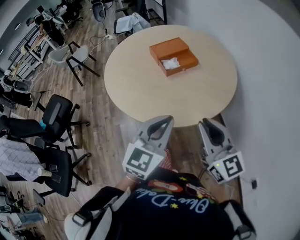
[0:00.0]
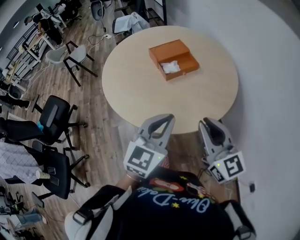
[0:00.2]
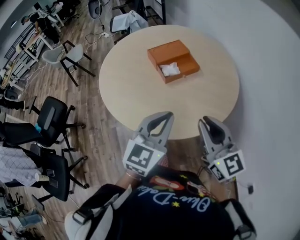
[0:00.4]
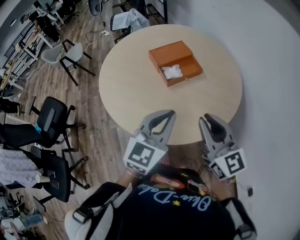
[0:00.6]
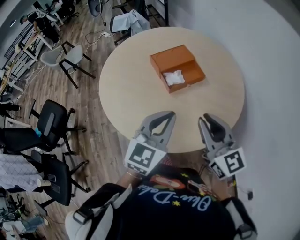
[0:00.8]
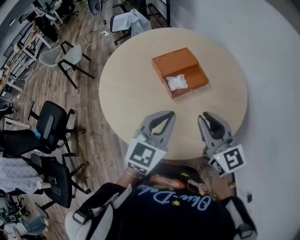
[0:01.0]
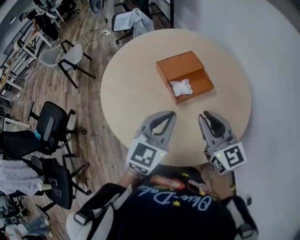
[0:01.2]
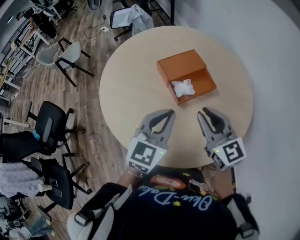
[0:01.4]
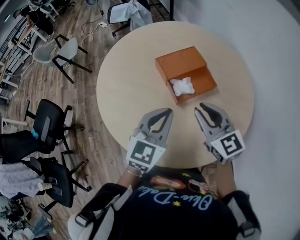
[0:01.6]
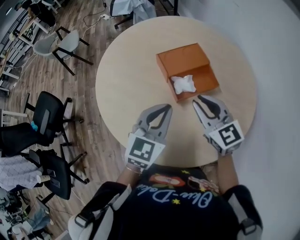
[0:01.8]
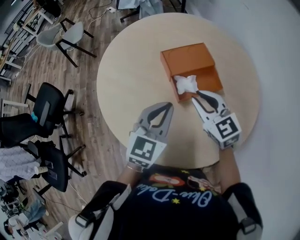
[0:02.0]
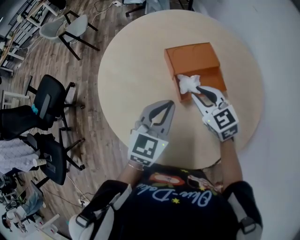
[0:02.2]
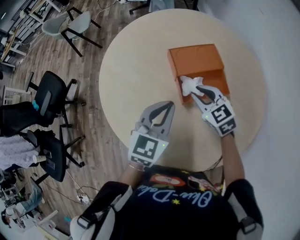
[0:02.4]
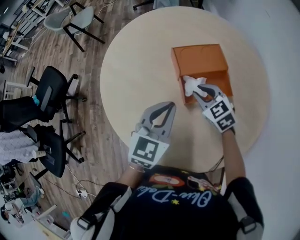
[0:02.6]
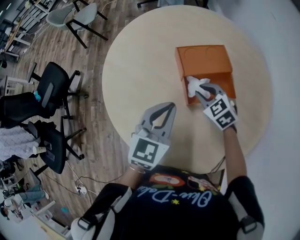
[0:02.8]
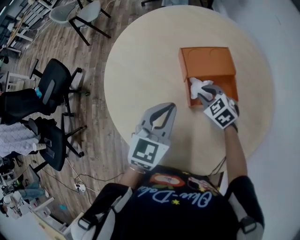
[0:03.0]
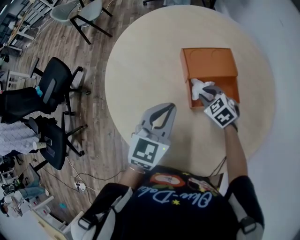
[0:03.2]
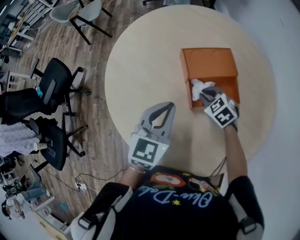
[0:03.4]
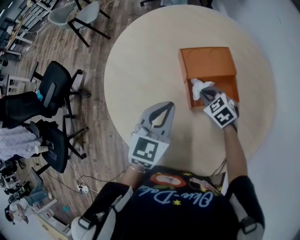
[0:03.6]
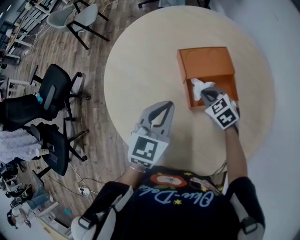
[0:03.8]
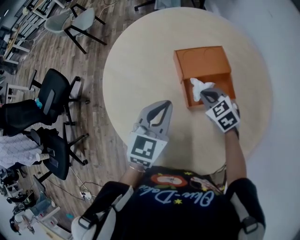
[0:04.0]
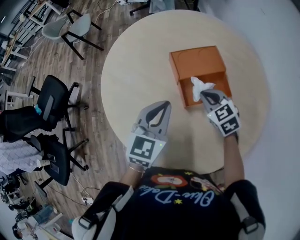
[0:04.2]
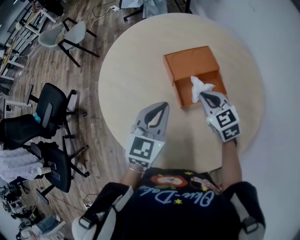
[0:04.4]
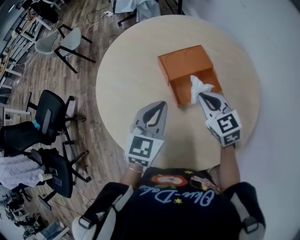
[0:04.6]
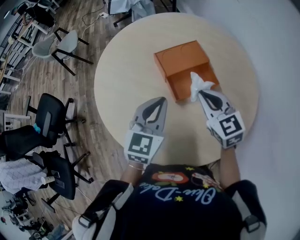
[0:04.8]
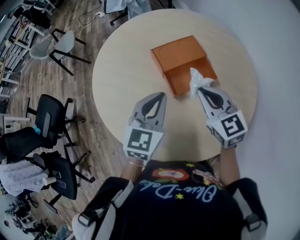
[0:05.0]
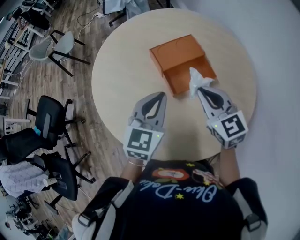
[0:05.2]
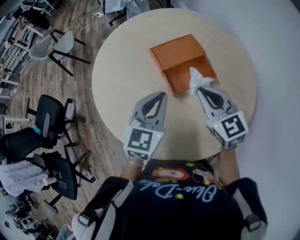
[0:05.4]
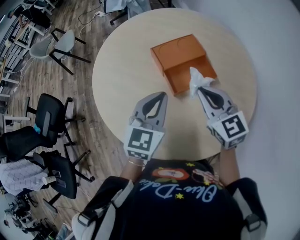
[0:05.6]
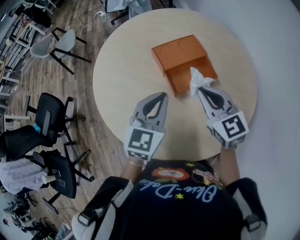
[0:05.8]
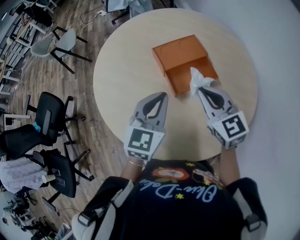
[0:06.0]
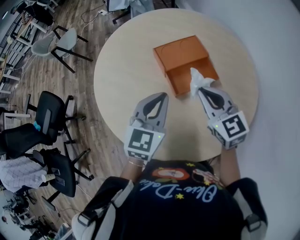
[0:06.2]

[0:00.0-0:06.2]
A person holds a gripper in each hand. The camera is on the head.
0:00.0 to 0:01.6: The two grippers go some 25 cm forward.
0:01.6 to 0:03.2: The right gripper moves downward and forward, approximately 25 cm, and angles its fingers downward, by about 40 degrees; the left gripper is displaced forward by roughly 5 cm.
0:03.2 to 0:04.6: The right gripper moves upward, some 15 cm, and swivels about 40 degrees.
0:04.6 to 0:06.2: The right gripper moves upward, roughly 5 cm.

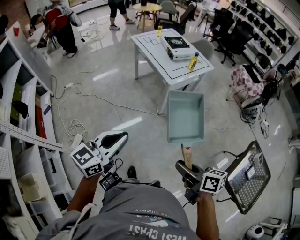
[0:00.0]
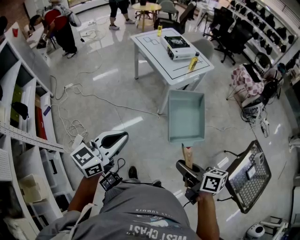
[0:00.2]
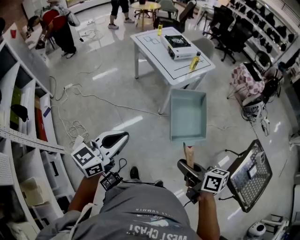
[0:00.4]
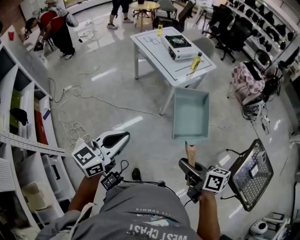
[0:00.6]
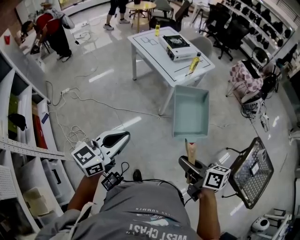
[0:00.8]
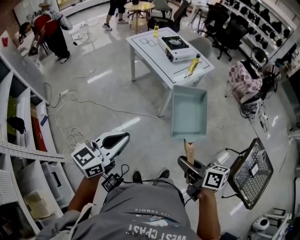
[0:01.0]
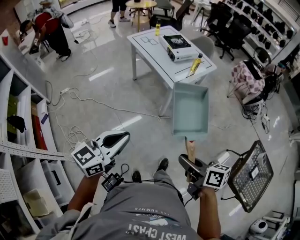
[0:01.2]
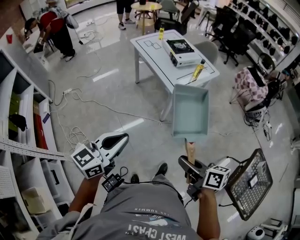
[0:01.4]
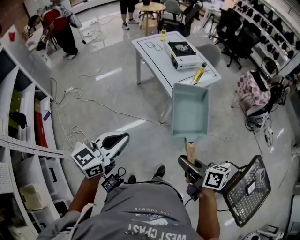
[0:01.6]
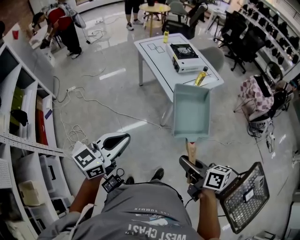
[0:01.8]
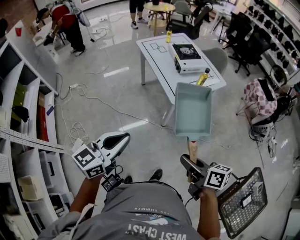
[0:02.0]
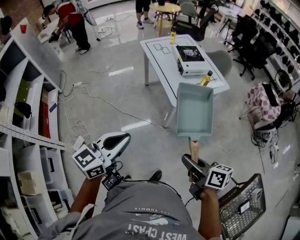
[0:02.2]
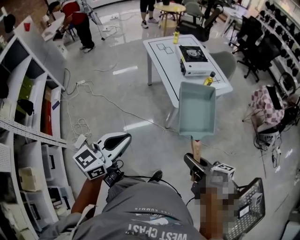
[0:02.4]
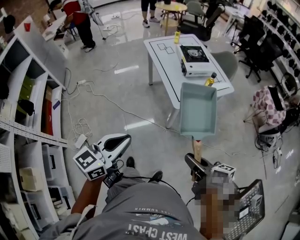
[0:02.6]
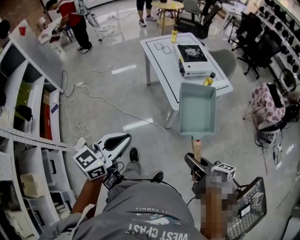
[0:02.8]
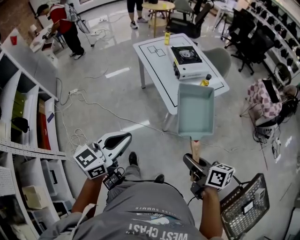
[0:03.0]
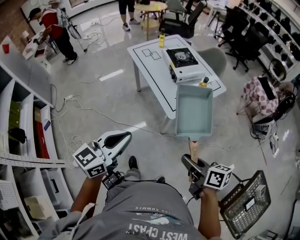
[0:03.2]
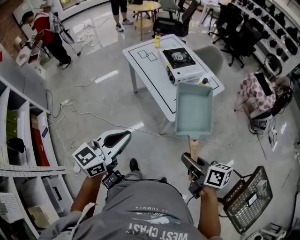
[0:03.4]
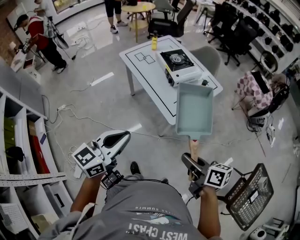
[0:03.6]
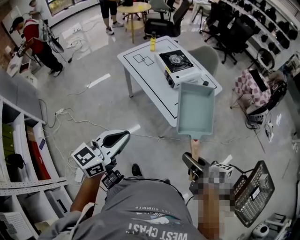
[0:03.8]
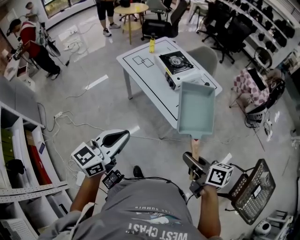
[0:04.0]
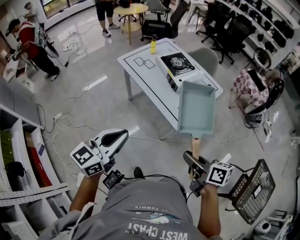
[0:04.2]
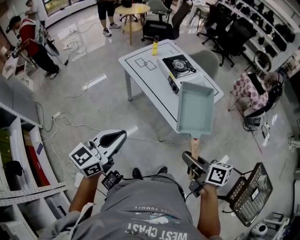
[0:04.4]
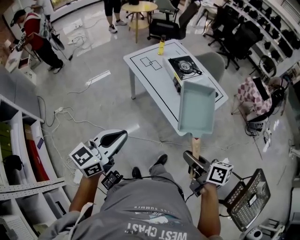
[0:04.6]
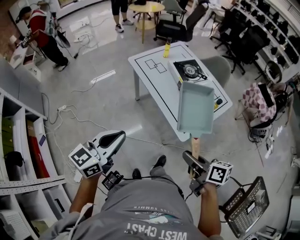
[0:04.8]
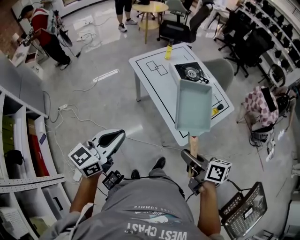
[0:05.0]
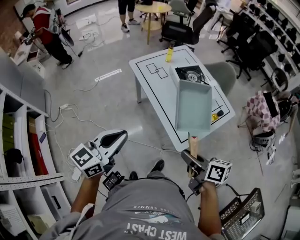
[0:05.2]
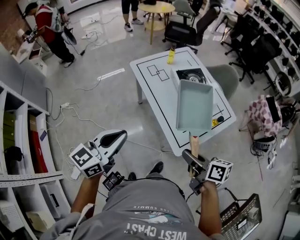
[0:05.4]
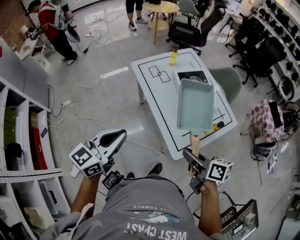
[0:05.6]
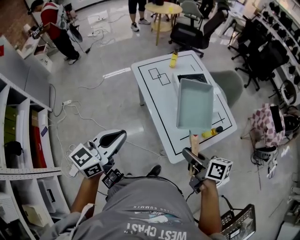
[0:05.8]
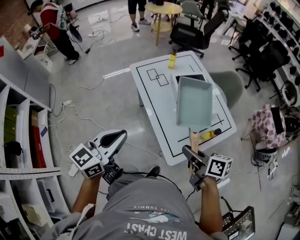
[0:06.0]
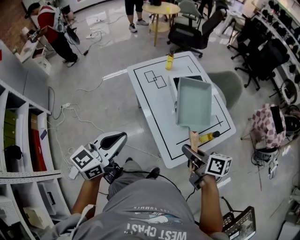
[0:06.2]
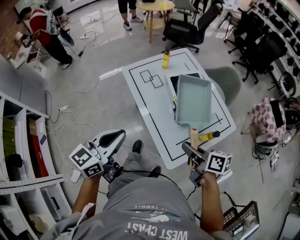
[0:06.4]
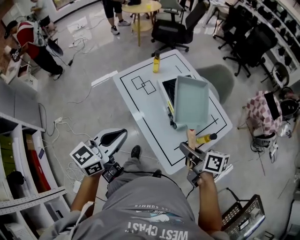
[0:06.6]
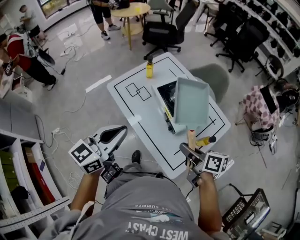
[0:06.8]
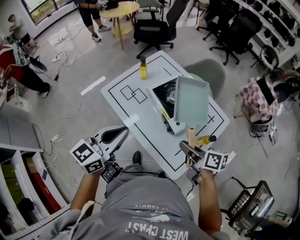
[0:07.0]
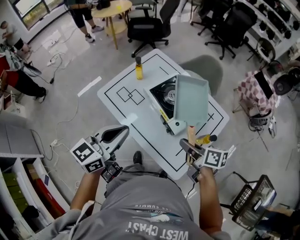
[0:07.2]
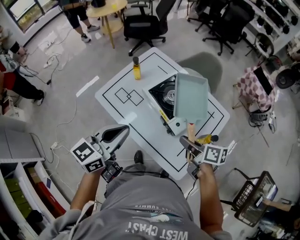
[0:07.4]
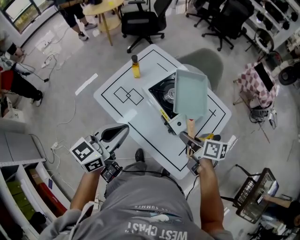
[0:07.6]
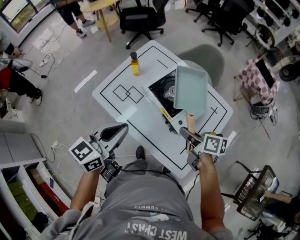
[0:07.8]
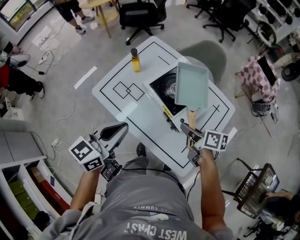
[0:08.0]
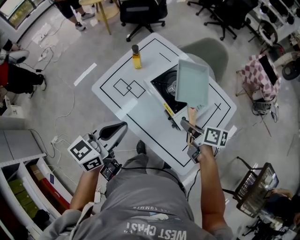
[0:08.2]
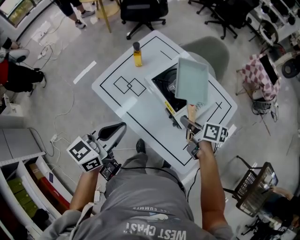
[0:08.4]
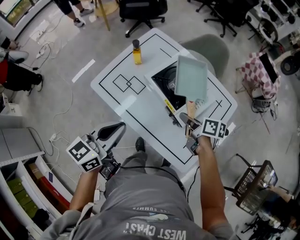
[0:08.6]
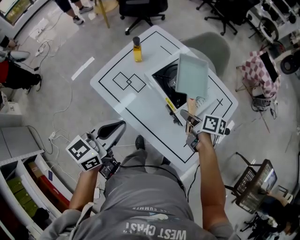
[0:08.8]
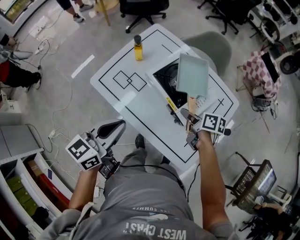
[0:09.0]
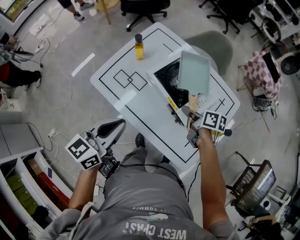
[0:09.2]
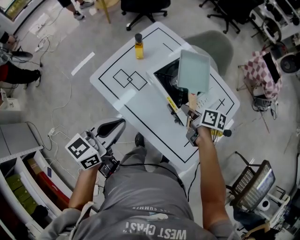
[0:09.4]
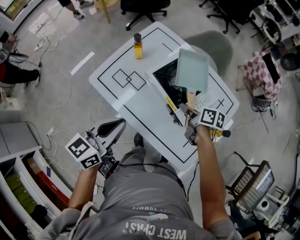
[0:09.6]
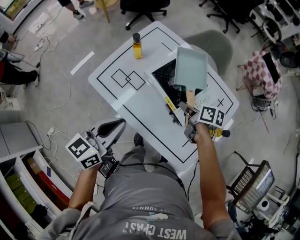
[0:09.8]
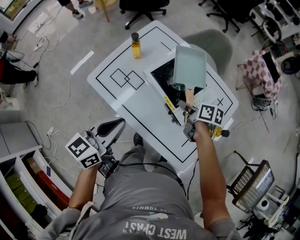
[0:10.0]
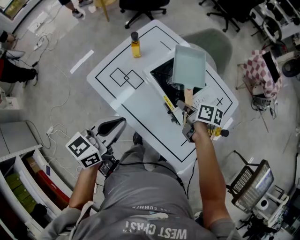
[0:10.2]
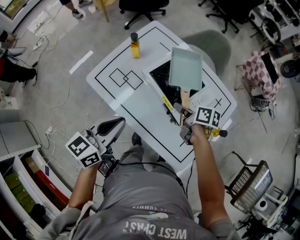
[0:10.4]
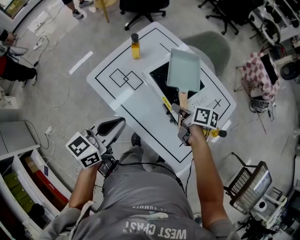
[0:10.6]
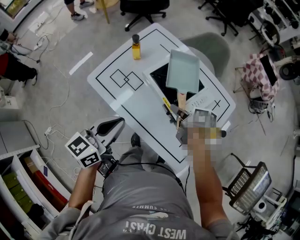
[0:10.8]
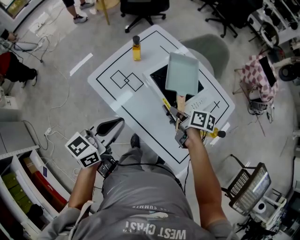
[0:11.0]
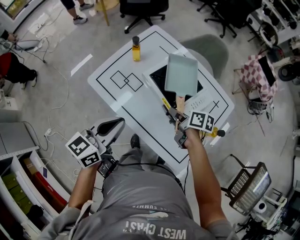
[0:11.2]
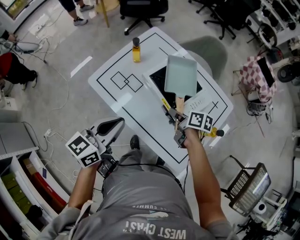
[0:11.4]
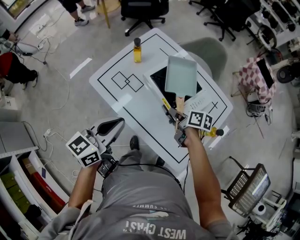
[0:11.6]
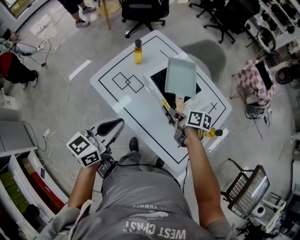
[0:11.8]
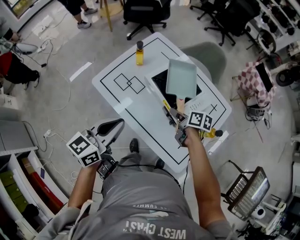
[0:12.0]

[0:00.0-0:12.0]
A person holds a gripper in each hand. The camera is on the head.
0:00.0 to 0:01.6: Both grippers travel together forward, some 15 cm.
0:01.6 to 0:03.0: The two grippers go roughly 15 cm forward and to the right.
0:03.0 to 0:04.4: The left gripper is displaced forward and to the left by roughly 25 cm. The right gripper shifts approximately 20 cm to the left and forward.
0:04.4 to 0:06.0: The right gripper goes some 25 cm forward. The left gripper goes approximately 20 cm forward and to the right.
0:06.0 to 0:07.6: The right gripper changes place by about 20 cm, and turns by roughly 30 degrees; the left gripper shifts by approximately 25 cm, and swivels roughly 30 degrees.
0:07.6 to 0:09.0: The right gripper moves downward and forward, about 10 cm. The left gripper goes approximately 5 cm downward.
0:09.0 to 0:10.4: There are only small adjustments of the grippers.
0:10.4 to 0:12.0: The right gripper opens up.

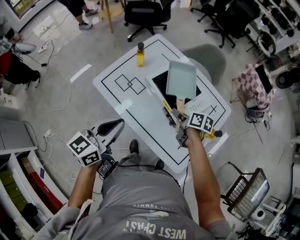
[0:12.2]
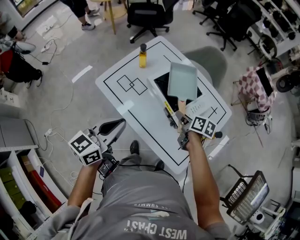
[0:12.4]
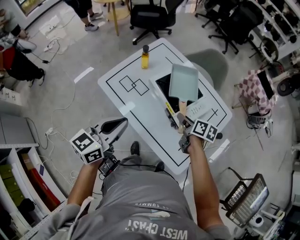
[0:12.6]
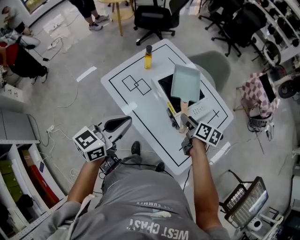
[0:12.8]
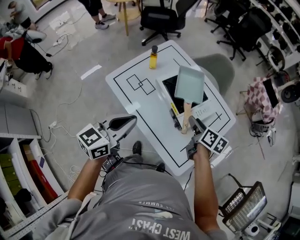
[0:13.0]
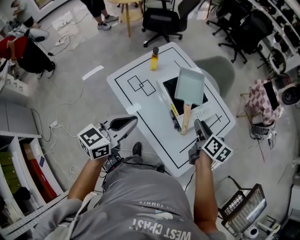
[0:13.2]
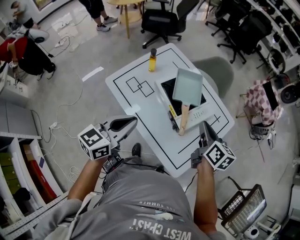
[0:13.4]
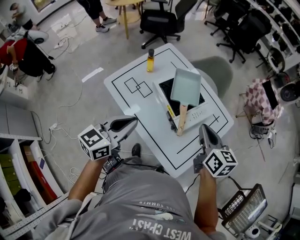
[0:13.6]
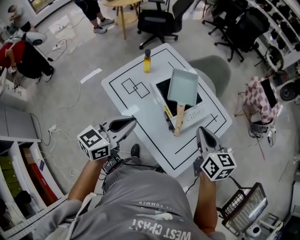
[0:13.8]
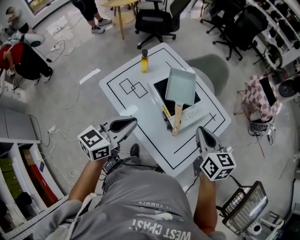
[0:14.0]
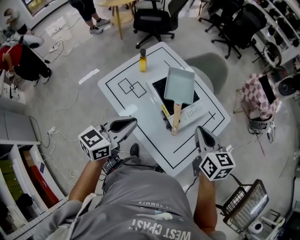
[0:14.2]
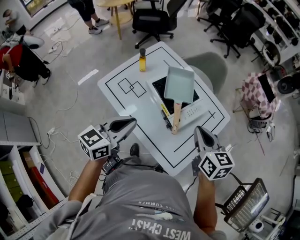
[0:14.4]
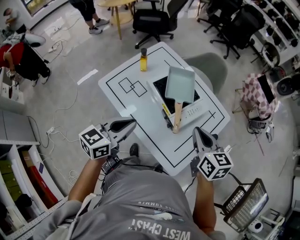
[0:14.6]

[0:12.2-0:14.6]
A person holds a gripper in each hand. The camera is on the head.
0:12.2 to 0:13.4: The right gripper travels upward and to the right by approximately 15 cm, turns by approximately 30 degrees, and closes.
0:13.4 to 0:14.6: The right gripper moves approximately 5 cm.

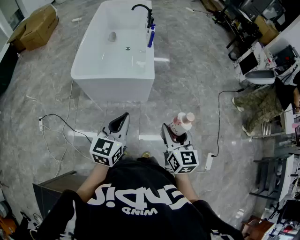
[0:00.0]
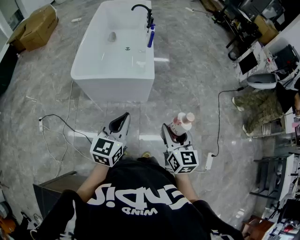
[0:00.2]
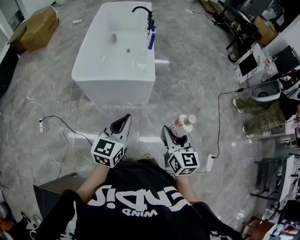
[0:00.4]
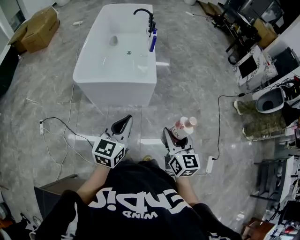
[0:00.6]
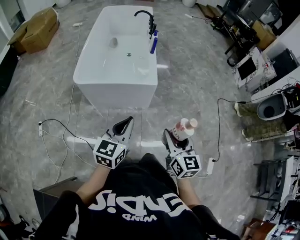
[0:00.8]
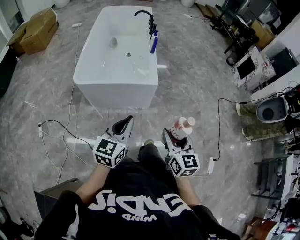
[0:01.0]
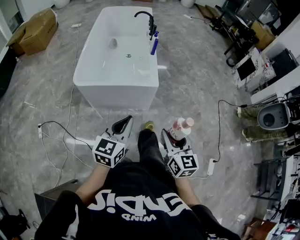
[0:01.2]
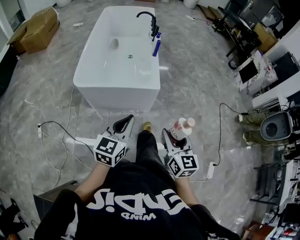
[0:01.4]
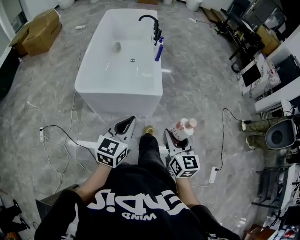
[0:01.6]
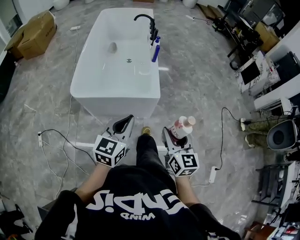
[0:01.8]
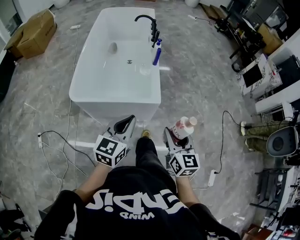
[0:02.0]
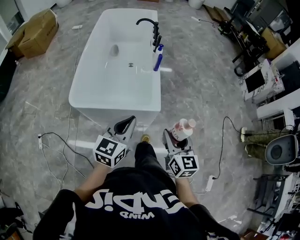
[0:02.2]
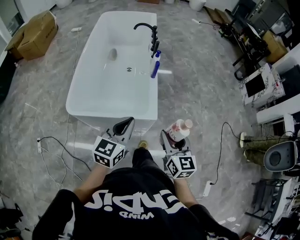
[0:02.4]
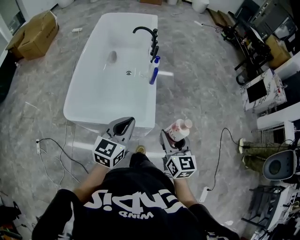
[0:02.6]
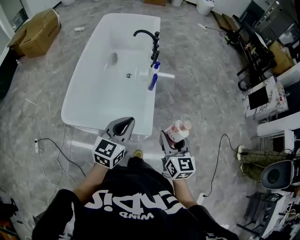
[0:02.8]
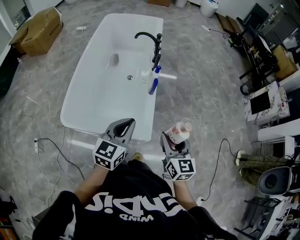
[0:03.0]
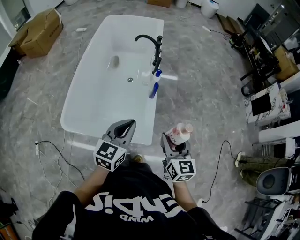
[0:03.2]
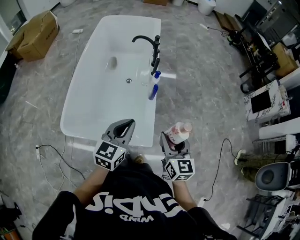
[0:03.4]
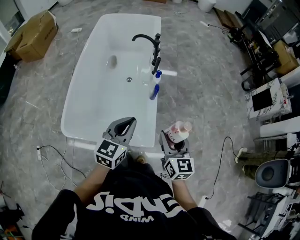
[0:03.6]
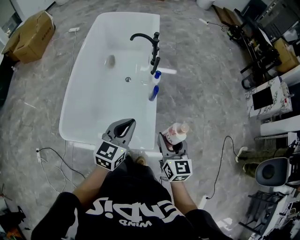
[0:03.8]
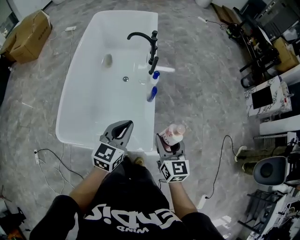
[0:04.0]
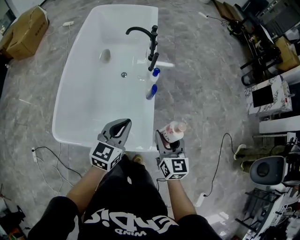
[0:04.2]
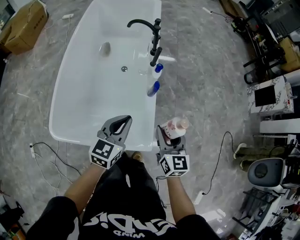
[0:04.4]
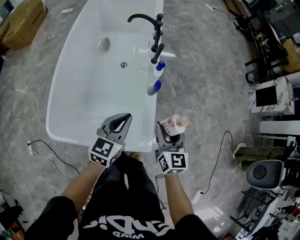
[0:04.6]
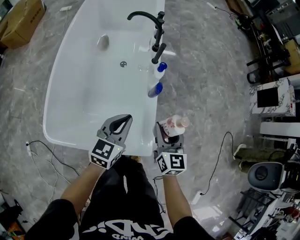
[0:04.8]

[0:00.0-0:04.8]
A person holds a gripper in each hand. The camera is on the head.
0:00.0 to 0:01.6: The right gripper moves forward and to the left, roughly 10 cm; the left gripper moves forward, roughly 10 cm.
0:01.6 to 0:03.2: Both grippers travel together forward, roughly 40 cm.
0:03.2 to 0:04.8: Both grippers move forward and downward, about 20 cm.
